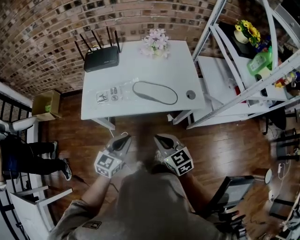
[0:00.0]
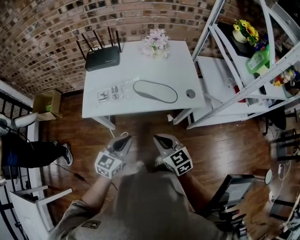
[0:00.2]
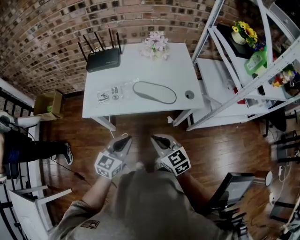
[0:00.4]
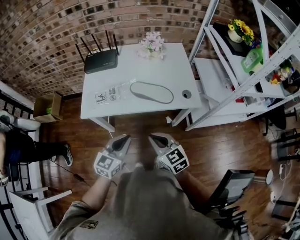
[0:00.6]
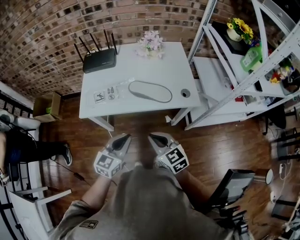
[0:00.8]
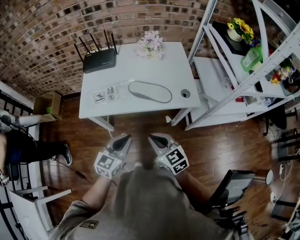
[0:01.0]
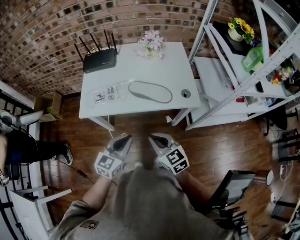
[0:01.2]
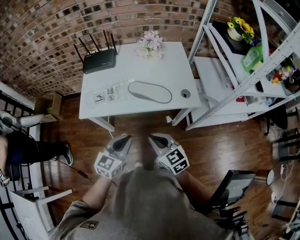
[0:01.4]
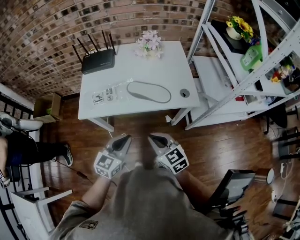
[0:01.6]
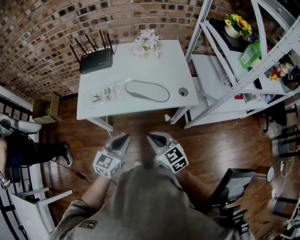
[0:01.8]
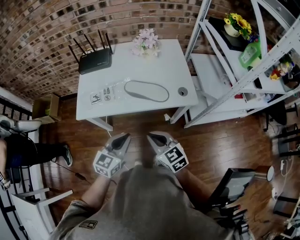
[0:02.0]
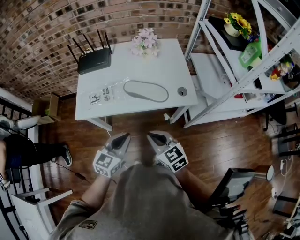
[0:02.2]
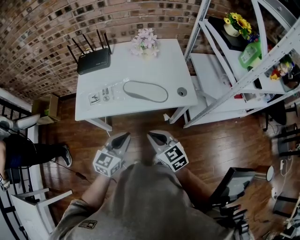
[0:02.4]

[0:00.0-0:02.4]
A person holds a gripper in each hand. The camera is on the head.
0.0 to 2.4 s: The grippers make only small movements.

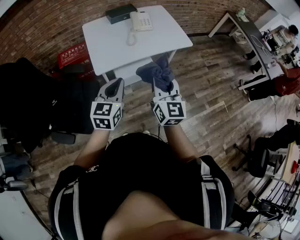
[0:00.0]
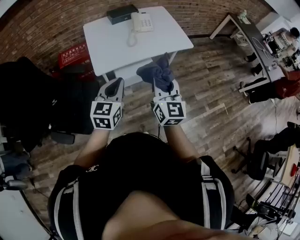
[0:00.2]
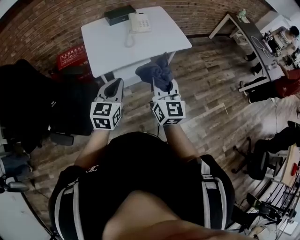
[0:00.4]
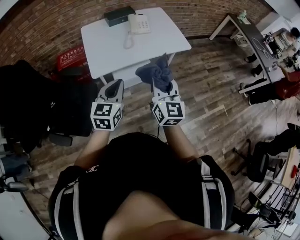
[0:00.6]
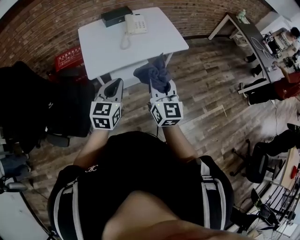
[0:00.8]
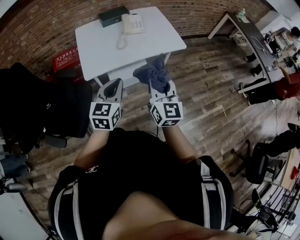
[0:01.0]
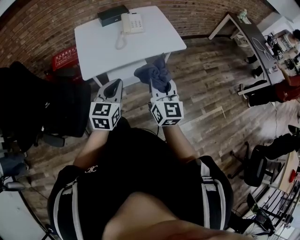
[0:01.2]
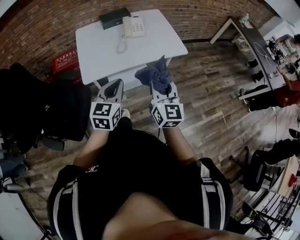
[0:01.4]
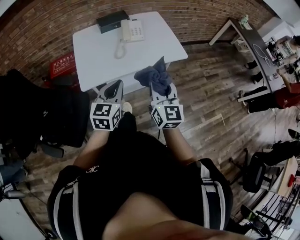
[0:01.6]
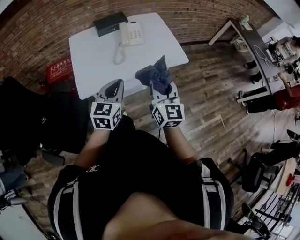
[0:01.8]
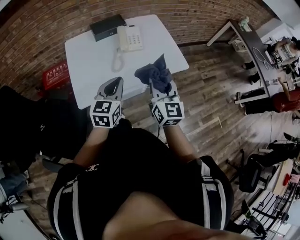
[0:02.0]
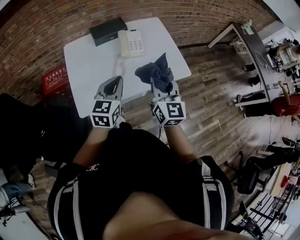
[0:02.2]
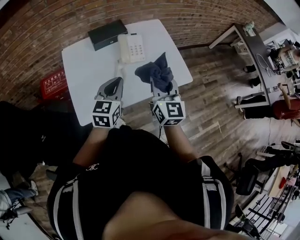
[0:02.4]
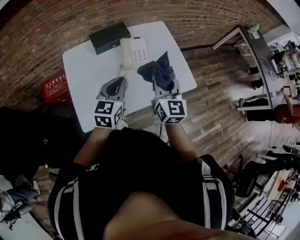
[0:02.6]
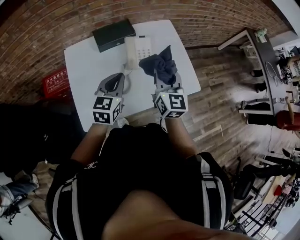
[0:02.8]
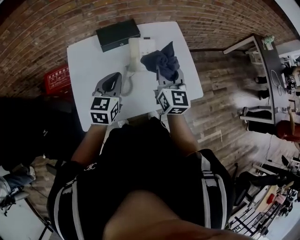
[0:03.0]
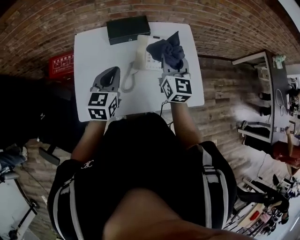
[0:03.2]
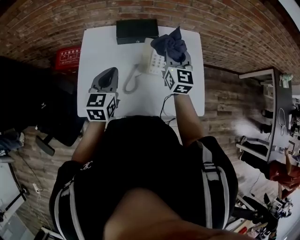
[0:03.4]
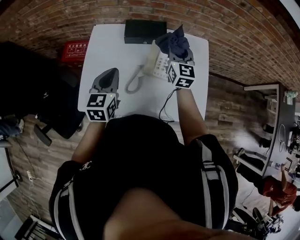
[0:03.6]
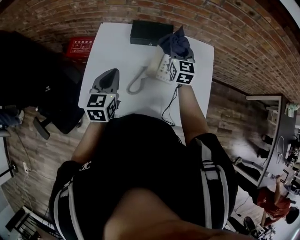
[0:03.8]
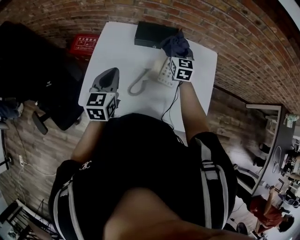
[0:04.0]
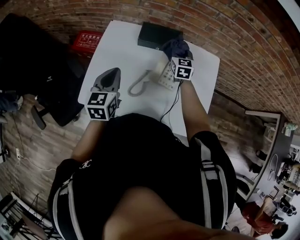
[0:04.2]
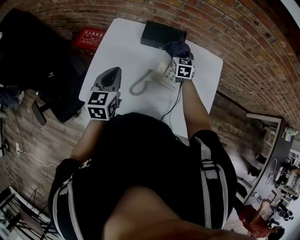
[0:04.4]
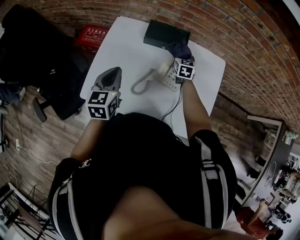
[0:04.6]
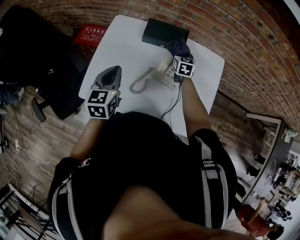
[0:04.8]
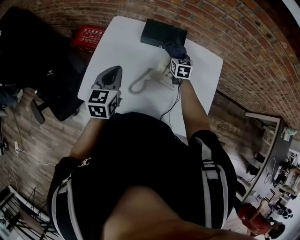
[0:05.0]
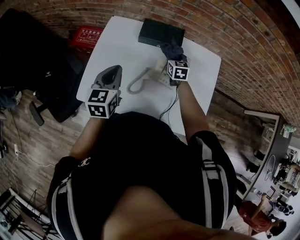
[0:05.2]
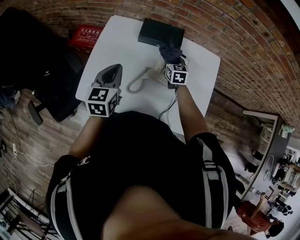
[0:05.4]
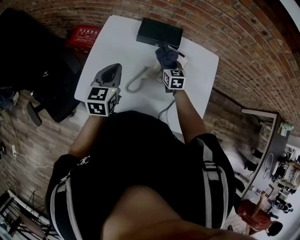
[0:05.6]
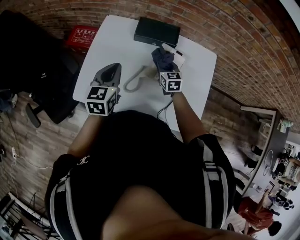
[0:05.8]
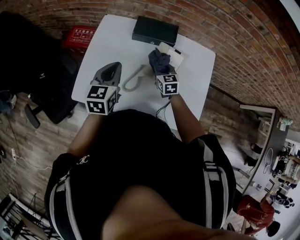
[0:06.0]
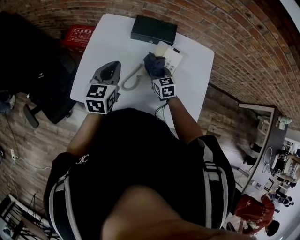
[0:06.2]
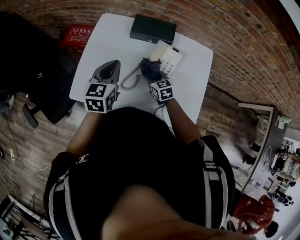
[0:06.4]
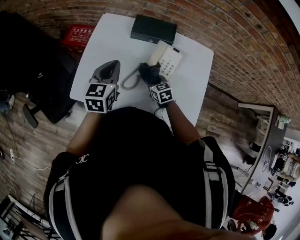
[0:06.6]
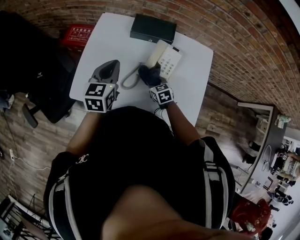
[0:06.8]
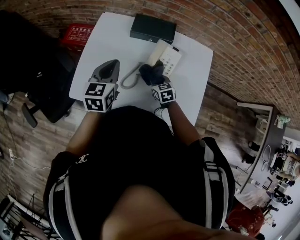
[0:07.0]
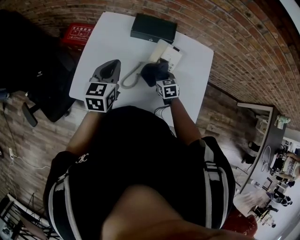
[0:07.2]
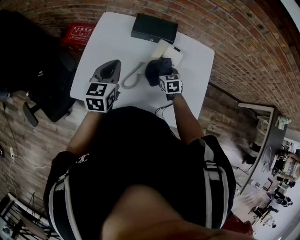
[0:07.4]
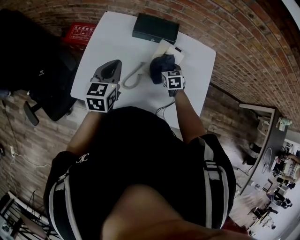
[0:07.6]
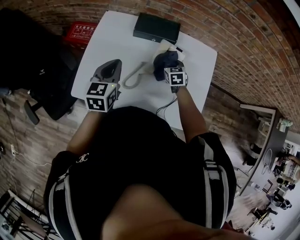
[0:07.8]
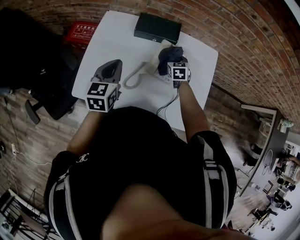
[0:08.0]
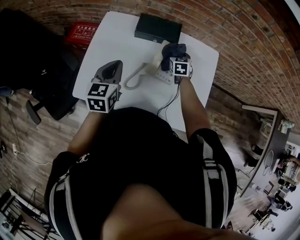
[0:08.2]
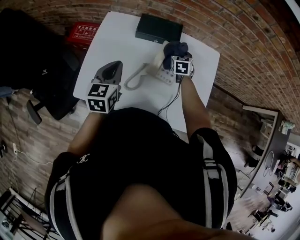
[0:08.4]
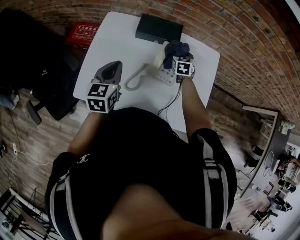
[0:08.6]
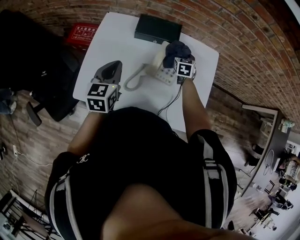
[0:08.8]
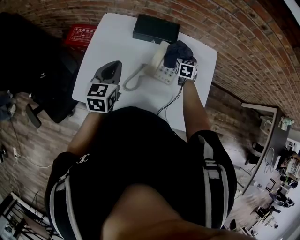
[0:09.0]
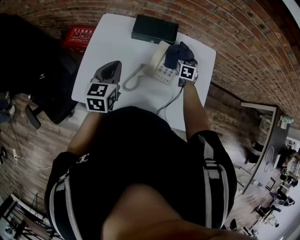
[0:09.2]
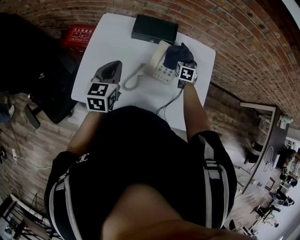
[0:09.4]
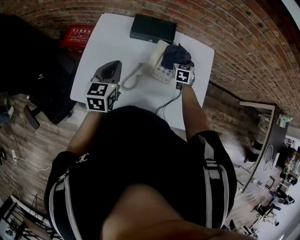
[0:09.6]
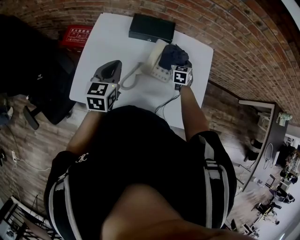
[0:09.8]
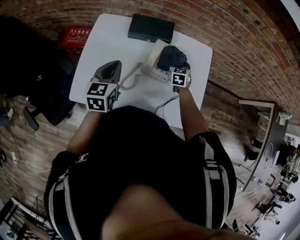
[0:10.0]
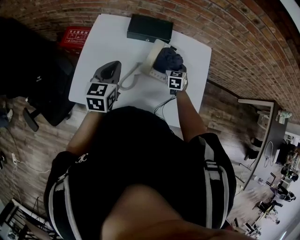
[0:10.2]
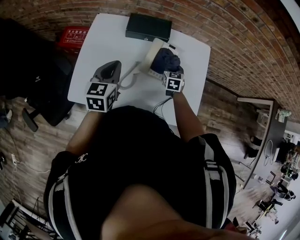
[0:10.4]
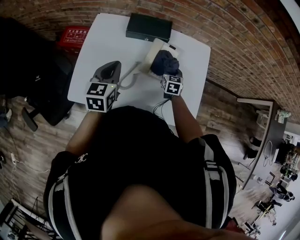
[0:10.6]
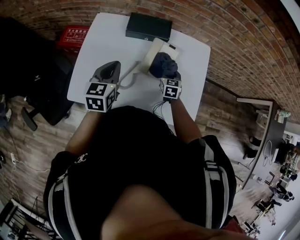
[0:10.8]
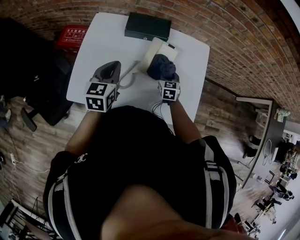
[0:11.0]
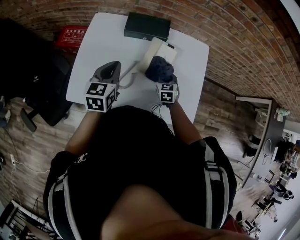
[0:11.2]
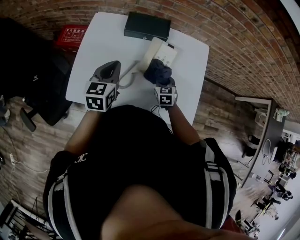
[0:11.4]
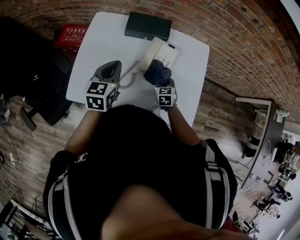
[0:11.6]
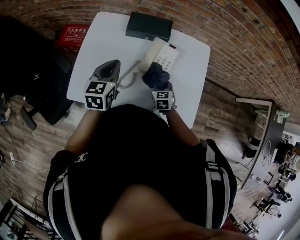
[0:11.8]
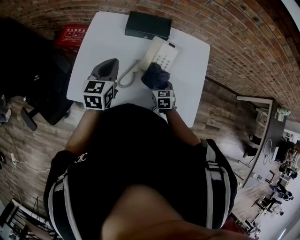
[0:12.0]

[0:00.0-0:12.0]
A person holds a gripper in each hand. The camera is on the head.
0.0 to 1.6 s: The grippers both shift forward and to the right by about 15 cm.
1.6 to 3.0 s: Both grippers travel together forward, some 35 cm.
3.0 to 4.4 s: The left gripper moves about 5 cm, and changes its angle by about 40 degrees. The right gripper shifts by roughly 30 cm, and swivels about 40 degrees.
4.4 to 6.0 s: The right gripper goes about 15 cm backward and to the left.
6.0 to 7.6 s: The right gripper moves approximately 10 cm backward and comes back.
7.6 to 9.0 s: The right gripper is displaced forward and to the right by some 10 cm.
9.0 to 10.4 s: The right gripper moves backward, roughly 10 cm.
10.4 to 12.0 s: The right gripper is displaced backward by some 10 cm.

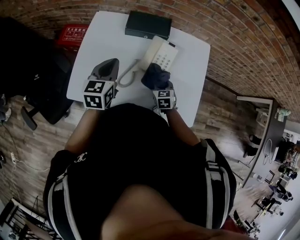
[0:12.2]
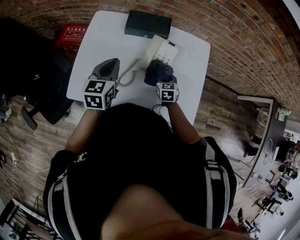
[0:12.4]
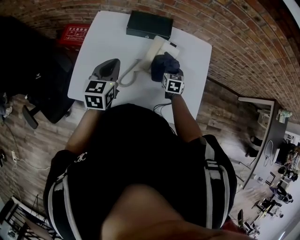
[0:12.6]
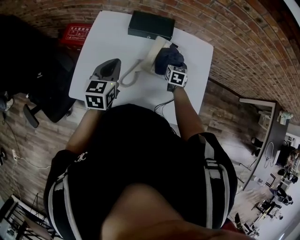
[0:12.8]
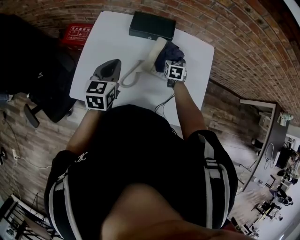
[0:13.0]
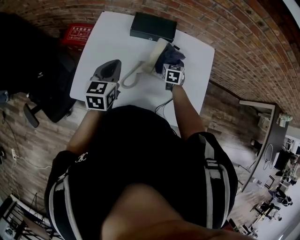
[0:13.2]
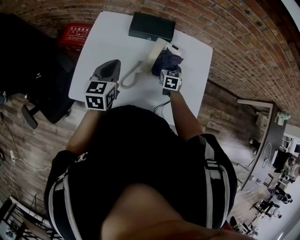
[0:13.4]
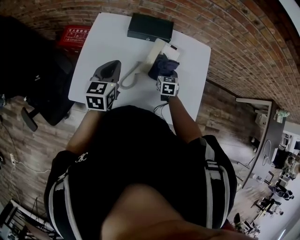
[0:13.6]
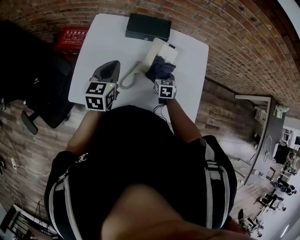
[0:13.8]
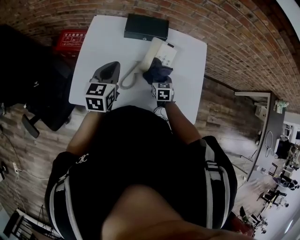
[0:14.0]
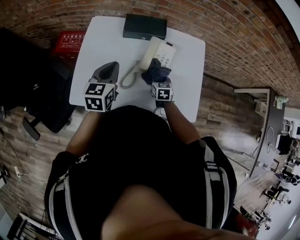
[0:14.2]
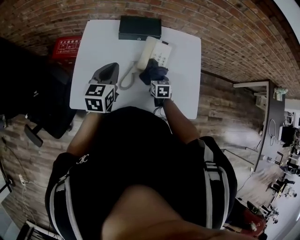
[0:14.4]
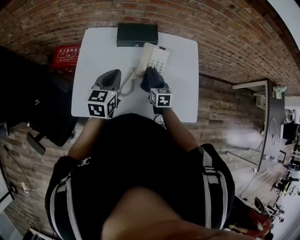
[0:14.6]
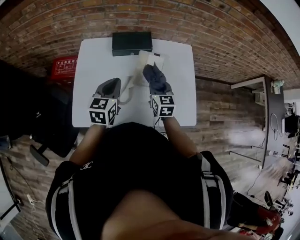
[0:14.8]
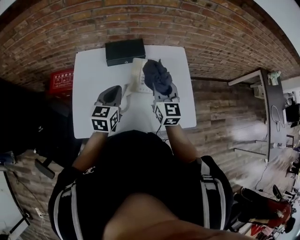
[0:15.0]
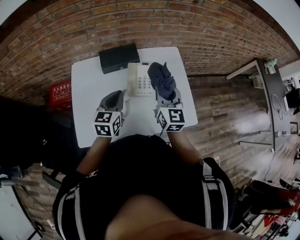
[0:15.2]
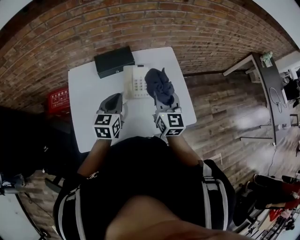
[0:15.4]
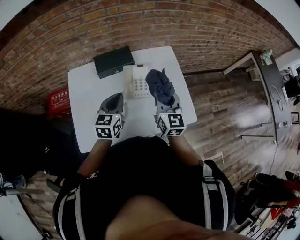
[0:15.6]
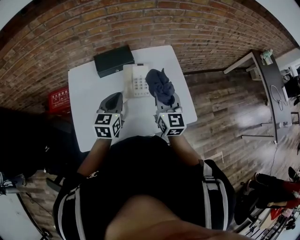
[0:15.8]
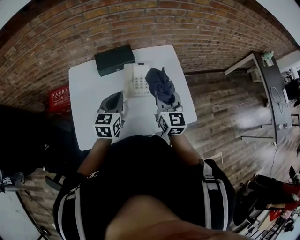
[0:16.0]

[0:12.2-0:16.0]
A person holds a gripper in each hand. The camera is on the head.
12.2 to 13.4 s: The right gripper travels forward by approximately 10 cm.
13.4 to 14.8 s: The right gripper shifts some 15 cm upward and backward.
14.8 to 16.0 s: The left gripper is displaced to the right by roughly 5 cm, while the right gripper heads upward and to the right, covering about 15 cm, and swivels approximately 20 degrees.

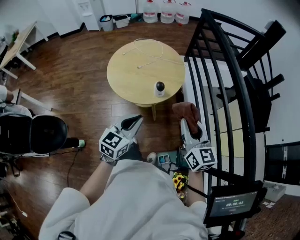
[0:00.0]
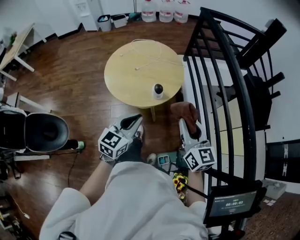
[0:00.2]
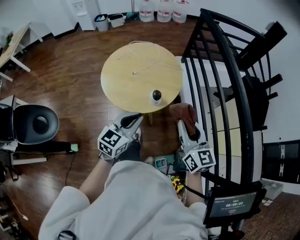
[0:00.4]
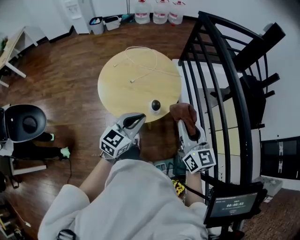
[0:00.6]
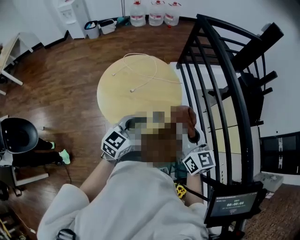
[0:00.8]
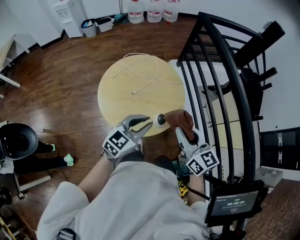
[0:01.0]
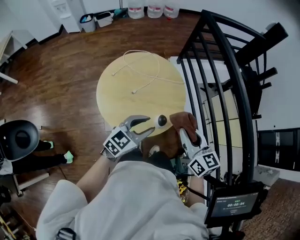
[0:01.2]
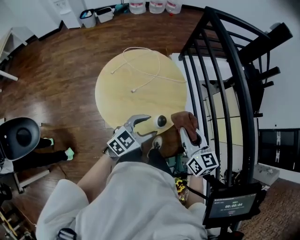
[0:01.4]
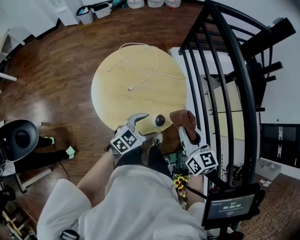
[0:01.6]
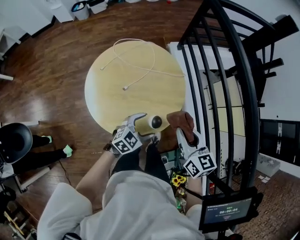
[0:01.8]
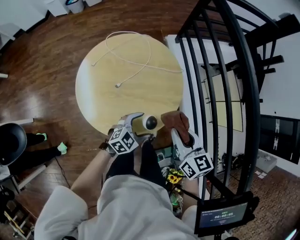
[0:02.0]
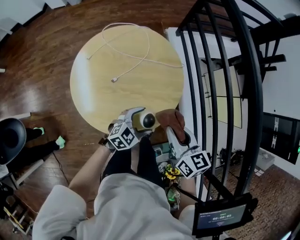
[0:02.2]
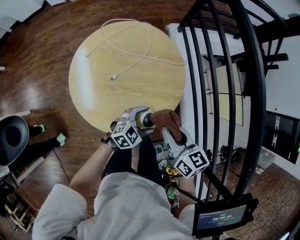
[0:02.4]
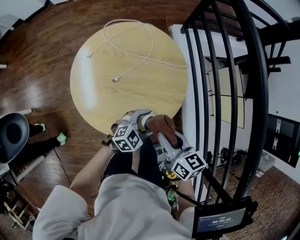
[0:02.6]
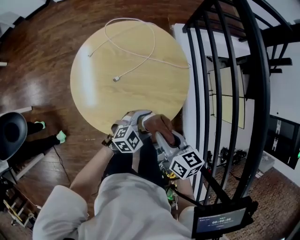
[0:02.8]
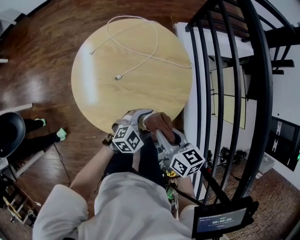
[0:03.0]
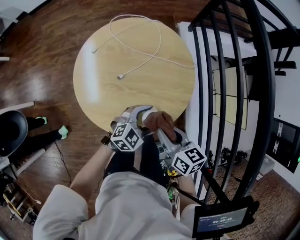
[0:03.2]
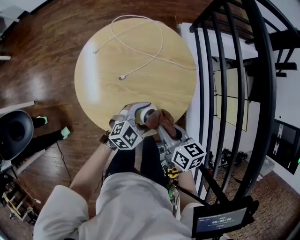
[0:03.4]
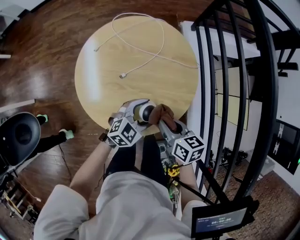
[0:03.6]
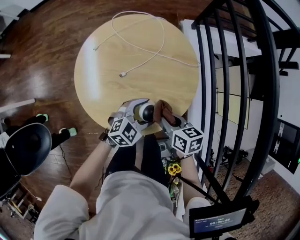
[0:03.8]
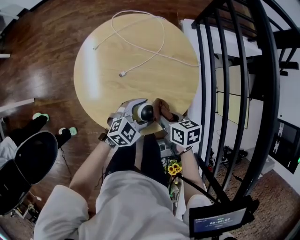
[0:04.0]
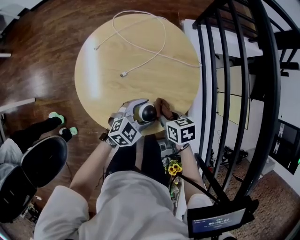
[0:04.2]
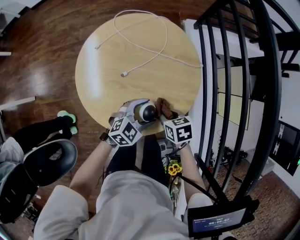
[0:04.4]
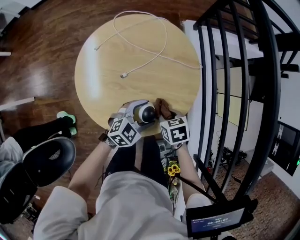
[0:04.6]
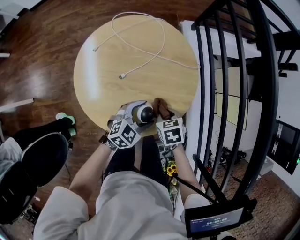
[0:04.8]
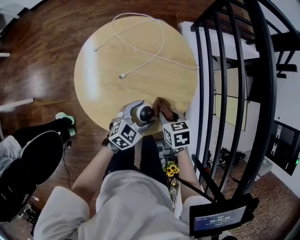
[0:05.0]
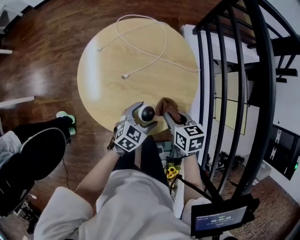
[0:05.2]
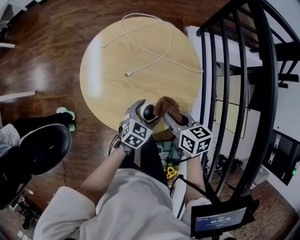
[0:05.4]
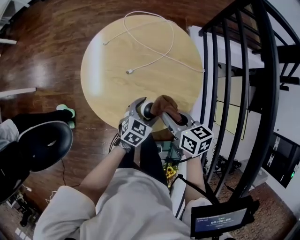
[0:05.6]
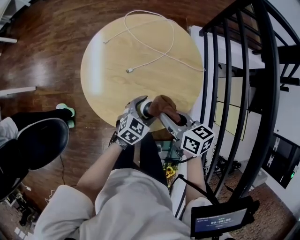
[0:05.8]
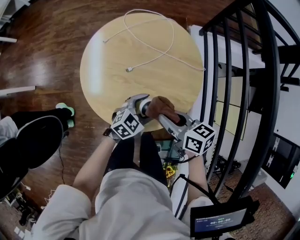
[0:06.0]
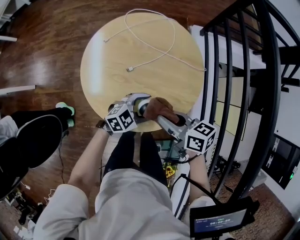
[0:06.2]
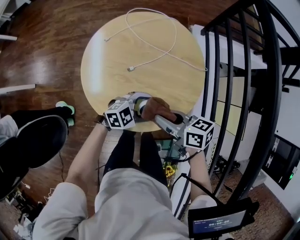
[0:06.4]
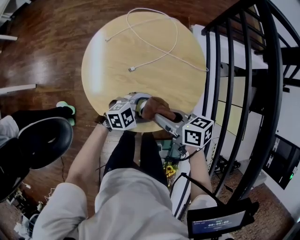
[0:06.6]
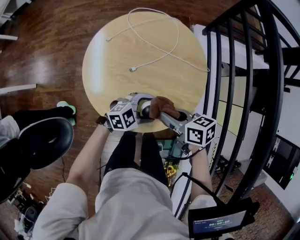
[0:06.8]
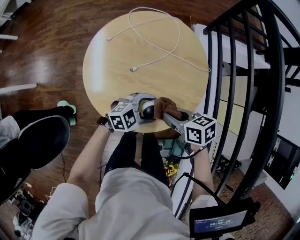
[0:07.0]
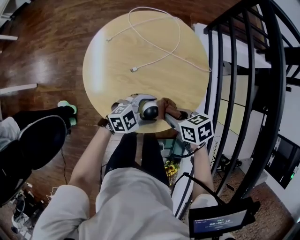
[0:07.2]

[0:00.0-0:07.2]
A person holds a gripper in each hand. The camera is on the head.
0.0 to 1.4 s: The right gripper moves forward and to the left, approximately 15 cm. Meanwhile the left gripper is displaced forward by about 15 cm, turns by about 30 degrees, and opens.
1.4 to 2.8 s: The right gripper travels downward and to the left by approximately 15 cm, and turns by approximately 30 degrees, while the left gripper shifts roughly 15 cm downward.
2.8 to 4.4 s: The right gripper travels downward by about 15 cm, and turns by approximately 30 degrees. The left gripper moves to the left, about 5 cm.
4.4 to 5.8 s: The right gripper travels upward by about 10 cm, and turns by some 30 degrees. The left gripper changes its angle by some 20 degrees.
5.8 to 7.2 s: The right gripper moves downward, some 5 cm, and swivels some 20 degrees; the left gripper turns by approximately 30 degrees.
